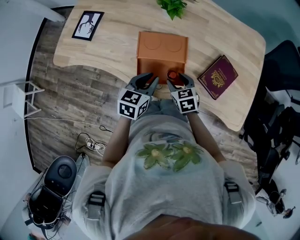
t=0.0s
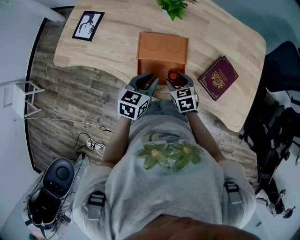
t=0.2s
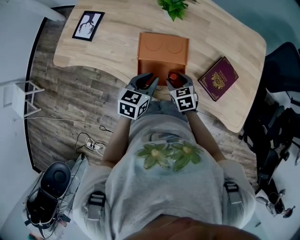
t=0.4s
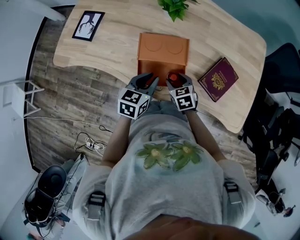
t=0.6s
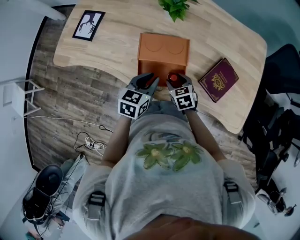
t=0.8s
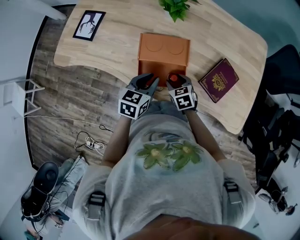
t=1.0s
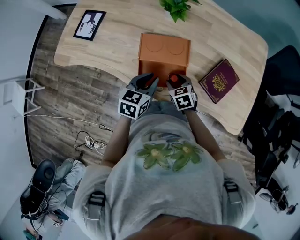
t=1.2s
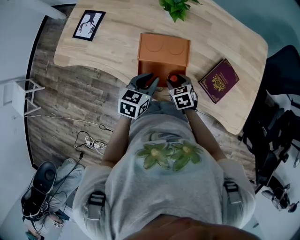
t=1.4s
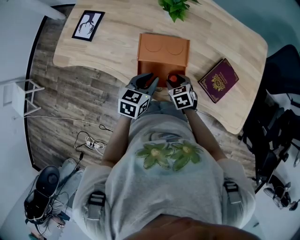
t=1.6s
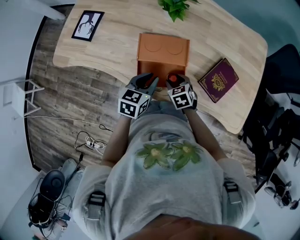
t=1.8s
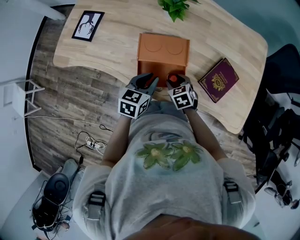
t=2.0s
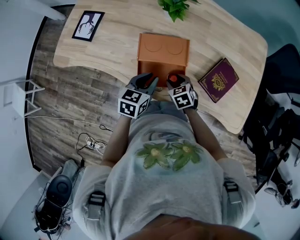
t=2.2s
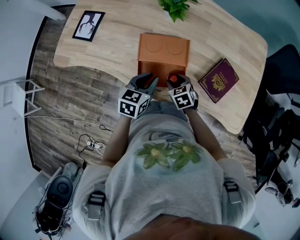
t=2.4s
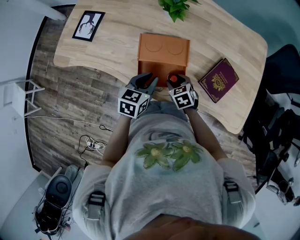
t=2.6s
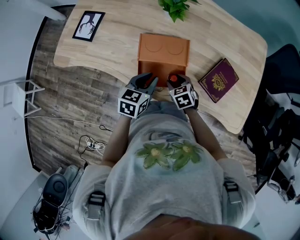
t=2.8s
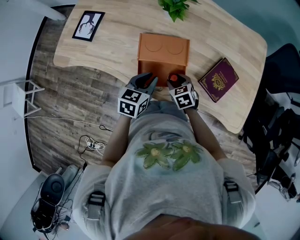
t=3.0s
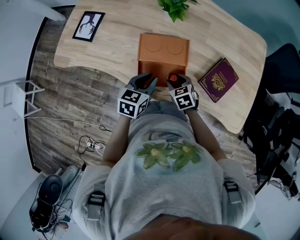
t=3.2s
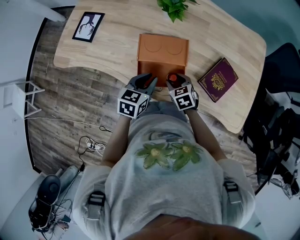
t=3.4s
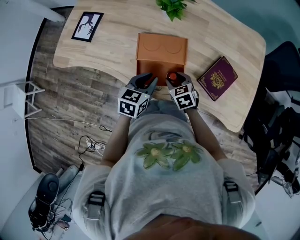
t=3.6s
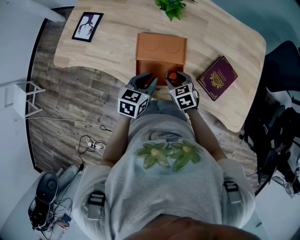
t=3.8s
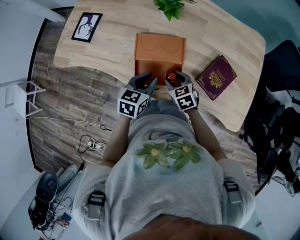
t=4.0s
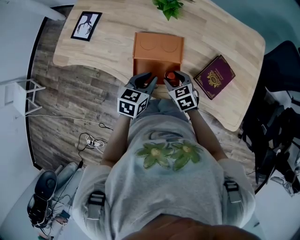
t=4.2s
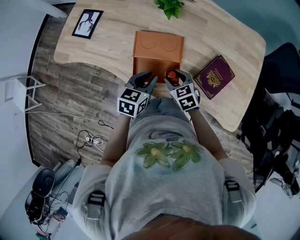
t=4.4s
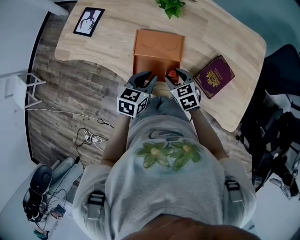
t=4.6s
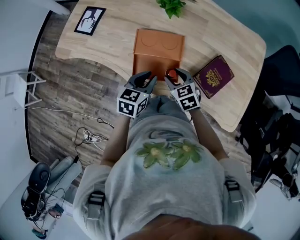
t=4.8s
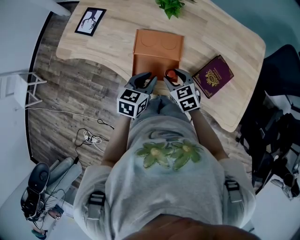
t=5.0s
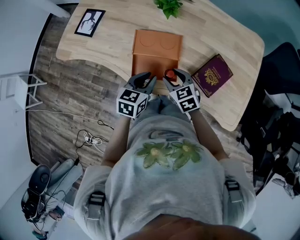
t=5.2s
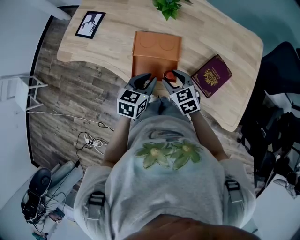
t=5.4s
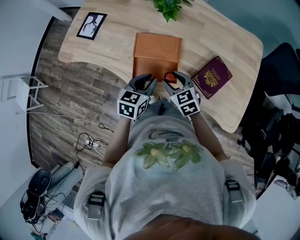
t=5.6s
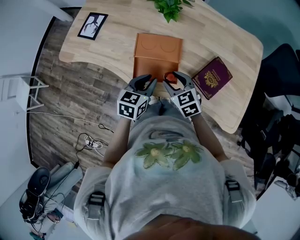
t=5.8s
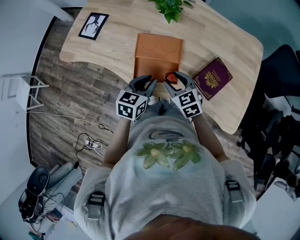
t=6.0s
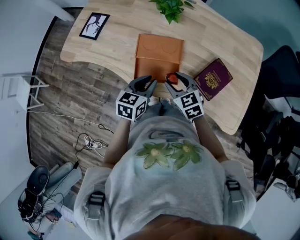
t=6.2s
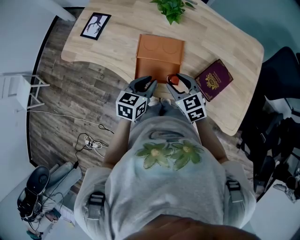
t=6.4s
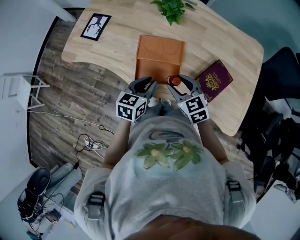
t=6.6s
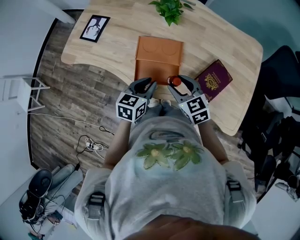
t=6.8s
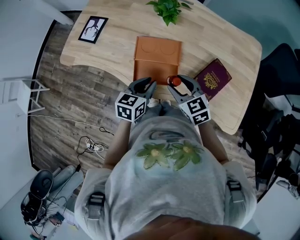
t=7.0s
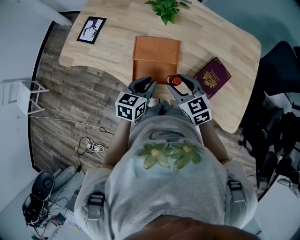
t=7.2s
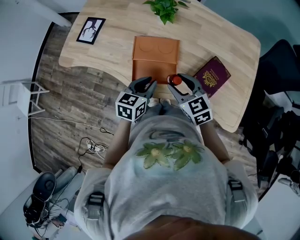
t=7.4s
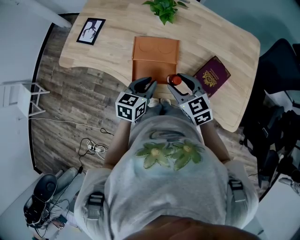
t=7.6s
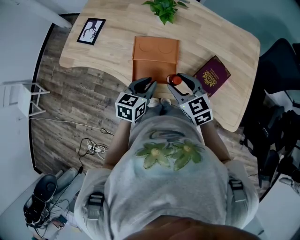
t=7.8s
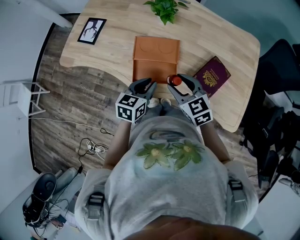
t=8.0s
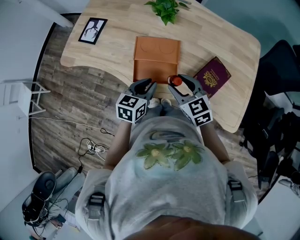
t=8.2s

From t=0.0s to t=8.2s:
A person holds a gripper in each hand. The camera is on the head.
From t=0.0s to t=1.6s: There are only small adjustments of the grippers.
From t=1.6s to t=3.2s: Both grippers stay about where they are.
From t=3.2s to t=5.0s: The right gripper goes about 10 cm upward. Meanwhile the left gripper changes place by approximately 5 cm.
From t=5.0s to t=6.6s: The right gripper travels upward by about 5 cm.
From t=6.6s to t=8.2s: There are only small adjustments of the grippers.

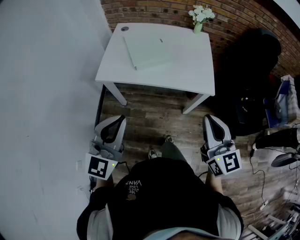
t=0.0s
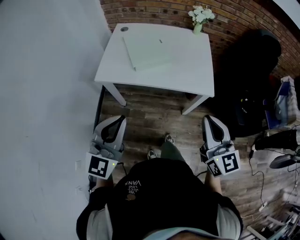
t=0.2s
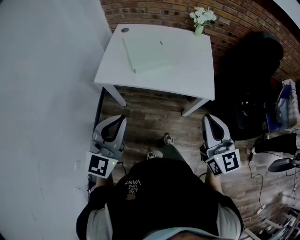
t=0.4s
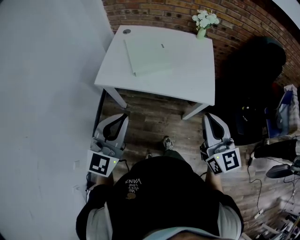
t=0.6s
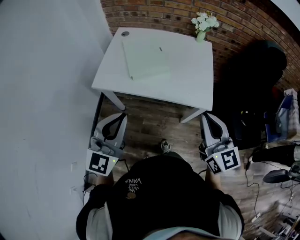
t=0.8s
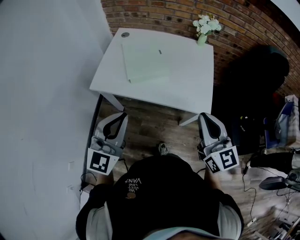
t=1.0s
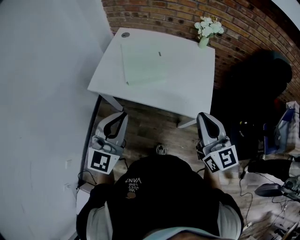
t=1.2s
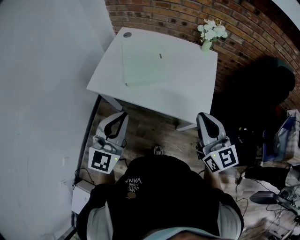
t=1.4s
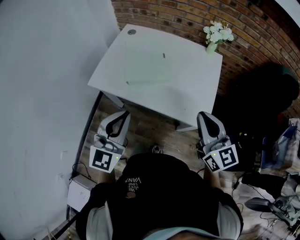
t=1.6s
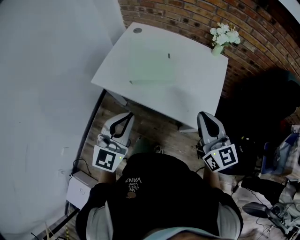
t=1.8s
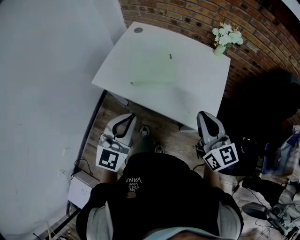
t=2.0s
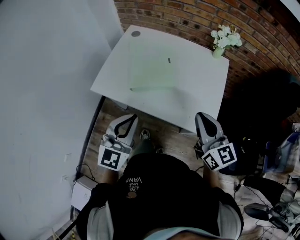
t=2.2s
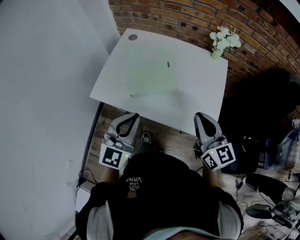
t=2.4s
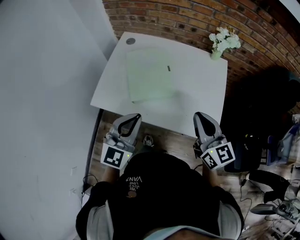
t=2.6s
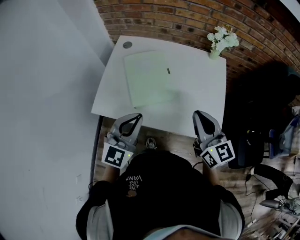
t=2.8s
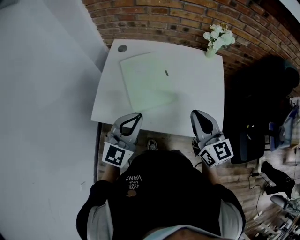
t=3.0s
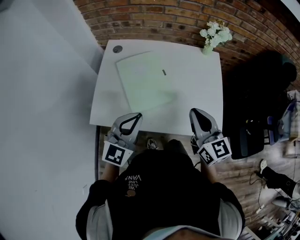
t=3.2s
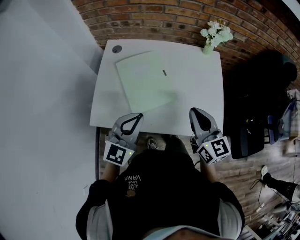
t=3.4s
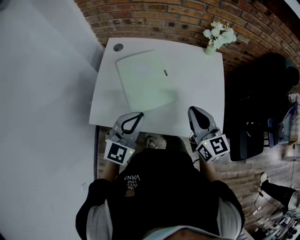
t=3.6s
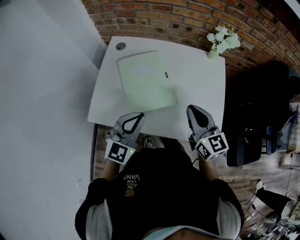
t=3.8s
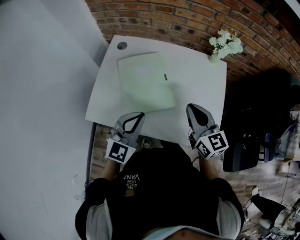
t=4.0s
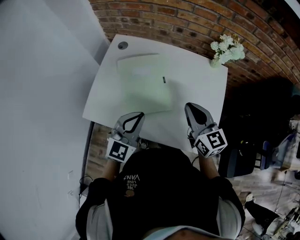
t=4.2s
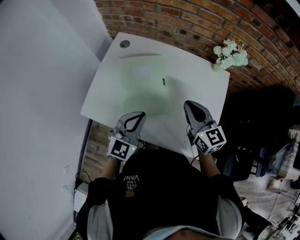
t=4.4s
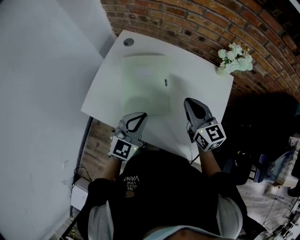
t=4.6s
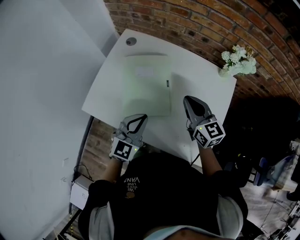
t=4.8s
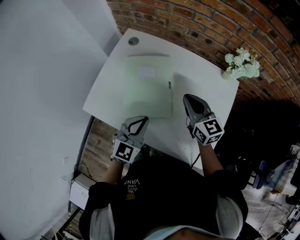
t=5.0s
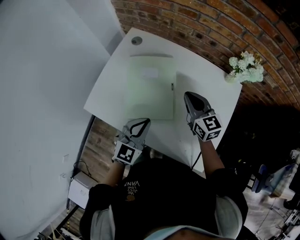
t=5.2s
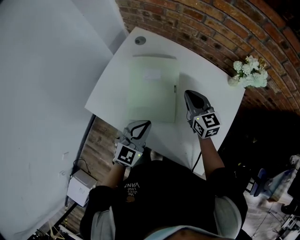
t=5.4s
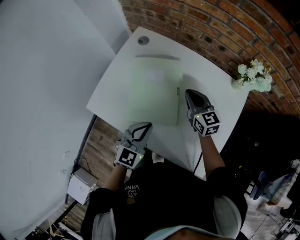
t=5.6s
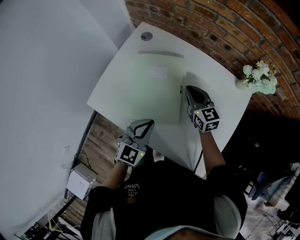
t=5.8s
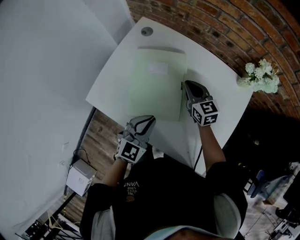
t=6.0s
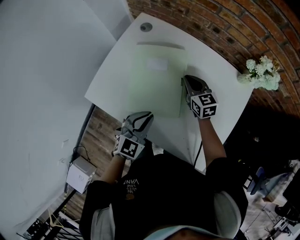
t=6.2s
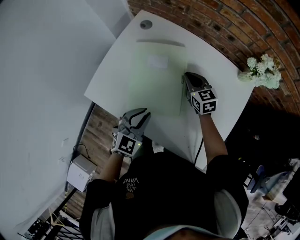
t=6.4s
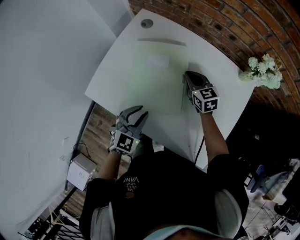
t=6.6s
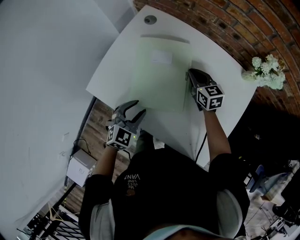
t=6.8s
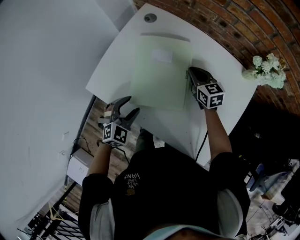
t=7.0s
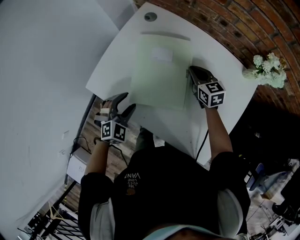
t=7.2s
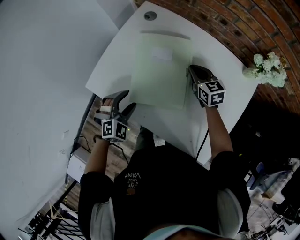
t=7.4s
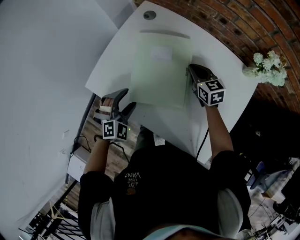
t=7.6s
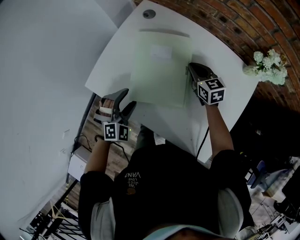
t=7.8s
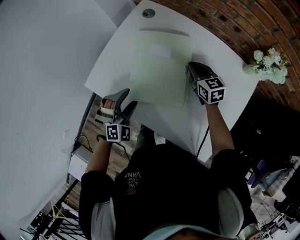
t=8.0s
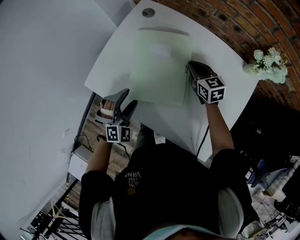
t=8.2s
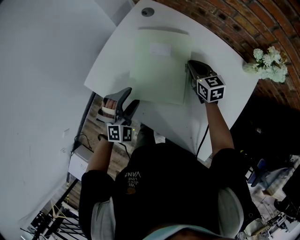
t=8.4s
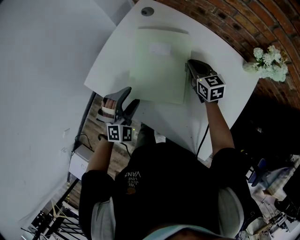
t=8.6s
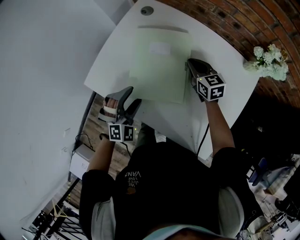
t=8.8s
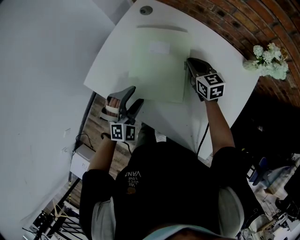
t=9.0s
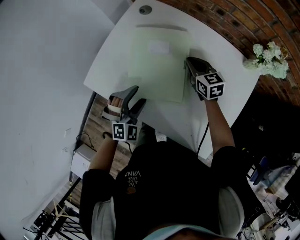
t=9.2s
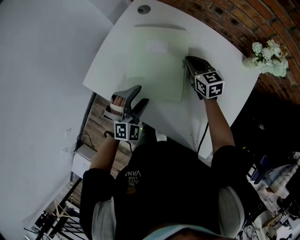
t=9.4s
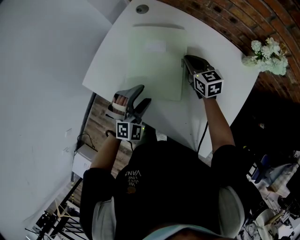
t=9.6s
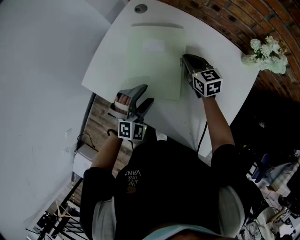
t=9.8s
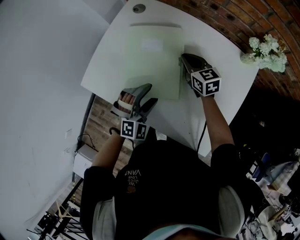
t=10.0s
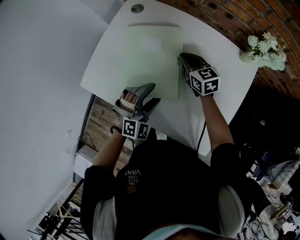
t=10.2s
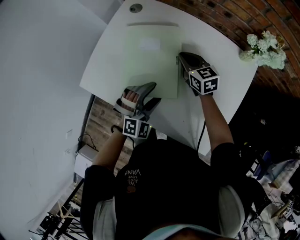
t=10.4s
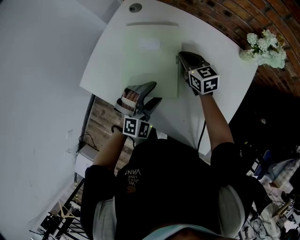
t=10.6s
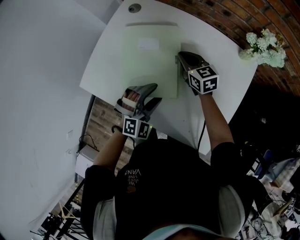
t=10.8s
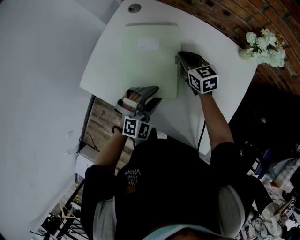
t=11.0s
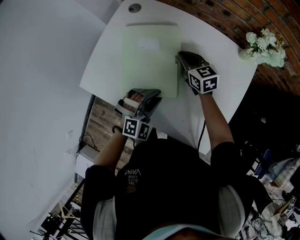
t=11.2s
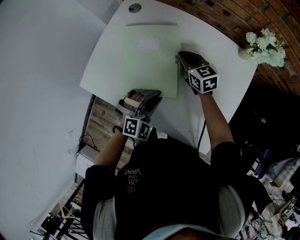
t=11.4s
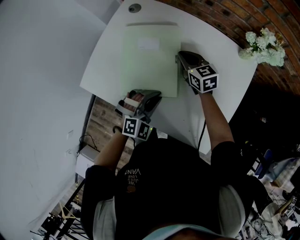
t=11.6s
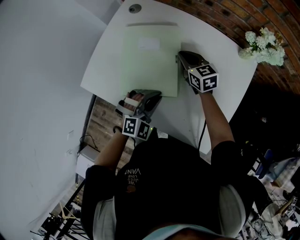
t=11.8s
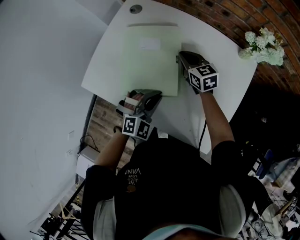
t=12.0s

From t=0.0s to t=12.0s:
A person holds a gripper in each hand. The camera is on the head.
From t=0.0s to t=1.6s: The left gripper goes about 20 cm forward and to the right, while the right gripper goes some 20 cm forward.
From t=1.6s to t=3.0s: The left gripper goes approximately 15 cm forward; the right gripper shifts roughly 15 cm forward and to the left.
From t=3.0s to t=4.4s: The right gripper goes roughly 15 cm forward, while the left gripper travels forward, downward and to the right by approximately 10 cm.
From t=4.4s to t=6.0s: The right gripper is displaced forward and downward by some 20 cm, while the left gripper heads downward, covering some 5 cm.
From t=6.0s to t=7.6s: The left gripper heads to the left and downward, covering some 15 cm, swivels approximately 40 degrees, and opens up.
From t=7.6s to t=9.0s: The grippers move only a little.
From t=9.0s to t=10.4s: The left gripper moves to the right, about 10 cm.
From t=10.4s to t=12.0s: The left gripper closes its fingers.

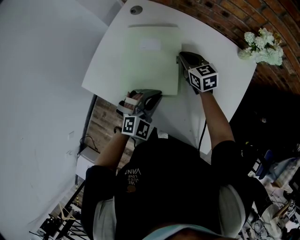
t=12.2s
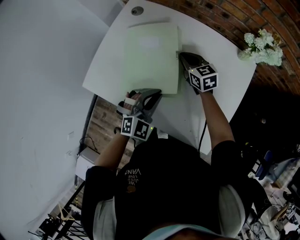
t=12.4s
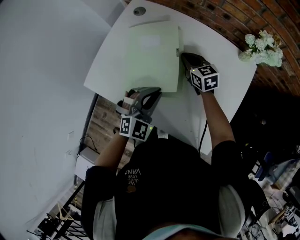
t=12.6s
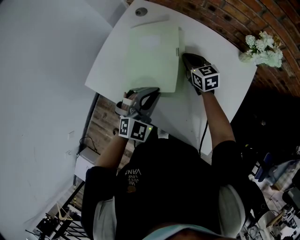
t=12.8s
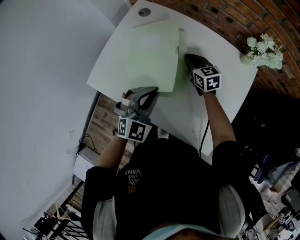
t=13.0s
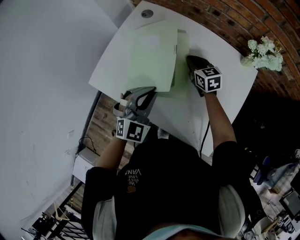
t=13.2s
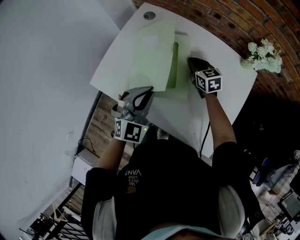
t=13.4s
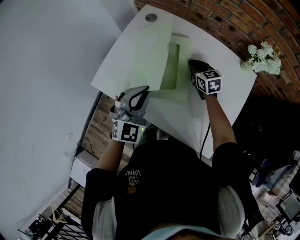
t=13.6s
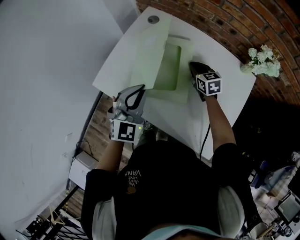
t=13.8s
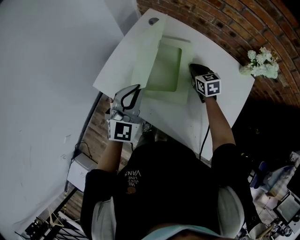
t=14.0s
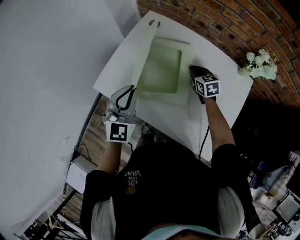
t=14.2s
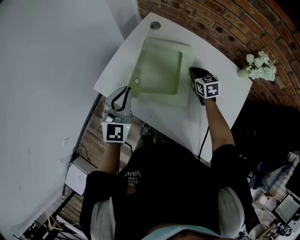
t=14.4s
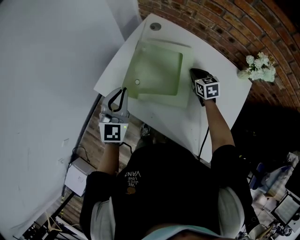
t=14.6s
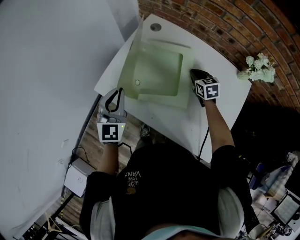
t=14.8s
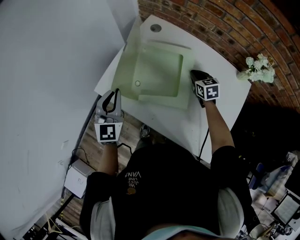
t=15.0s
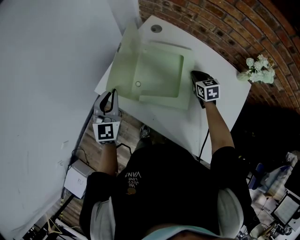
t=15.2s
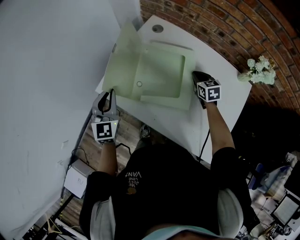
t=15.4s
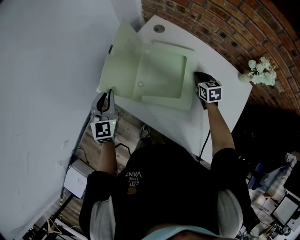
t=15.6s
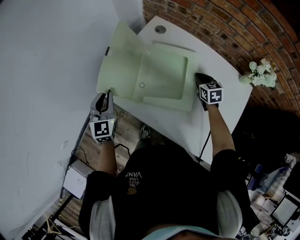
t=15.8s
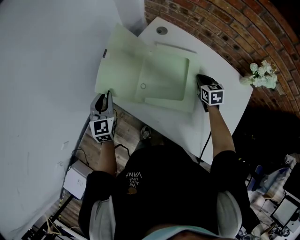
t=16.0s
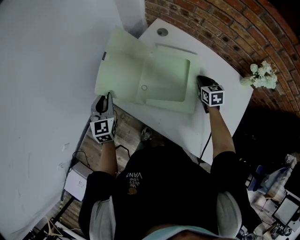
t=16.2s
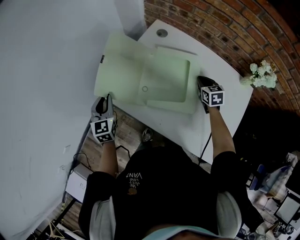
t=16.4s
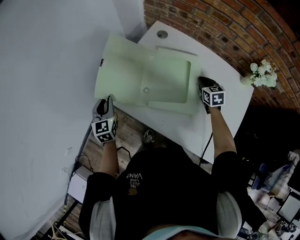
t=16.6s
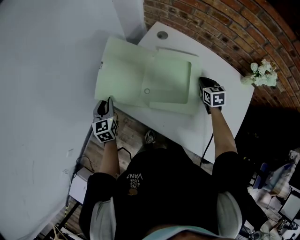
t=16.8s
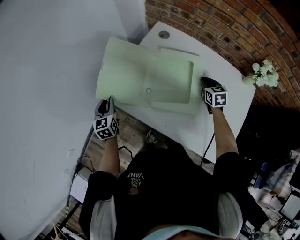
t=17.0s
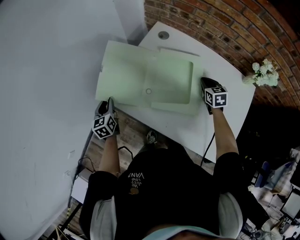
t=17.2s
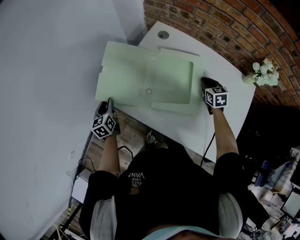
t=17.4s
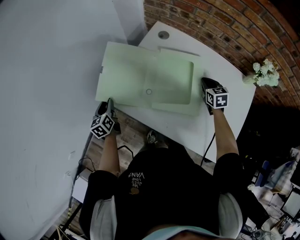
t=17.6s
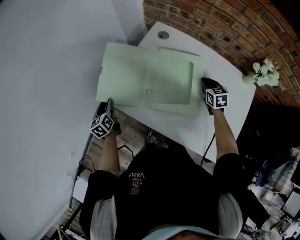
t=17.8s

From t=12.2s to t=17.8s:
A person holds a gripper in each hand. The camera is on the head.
From t=12.2s to t=13.6s: The left gripper shifts approximately 15 cm upward and to the left, and swivels roughly 20 degrees.
From t=13.6s to t=15.0s: The left gripper goes some 15 cm to the left, and turns by approximately 30 degrees.
From t=15.0s to t=16.4s: The left gripper goes approximately 15 cm to the left and downward.
From t=16.4s to t=17.8s: The left gripper is displaced downward and to the left by about 10 cm, and changes its angle by approximately 30 degrees.
